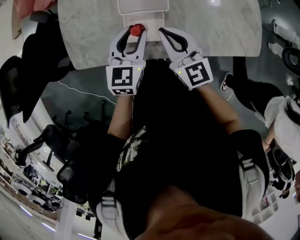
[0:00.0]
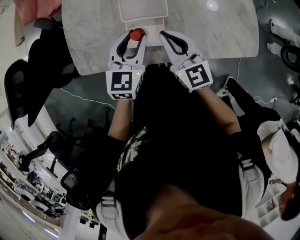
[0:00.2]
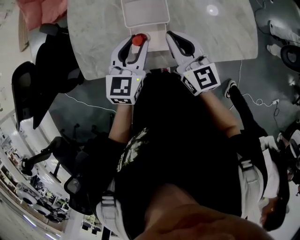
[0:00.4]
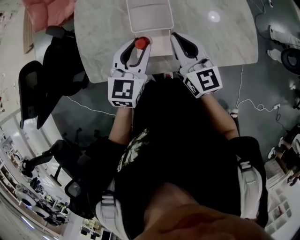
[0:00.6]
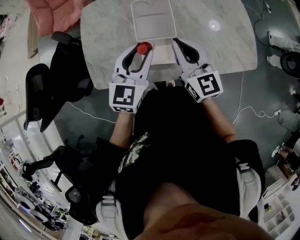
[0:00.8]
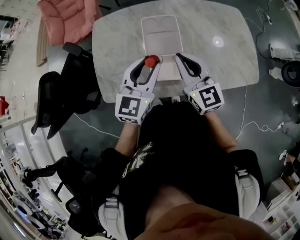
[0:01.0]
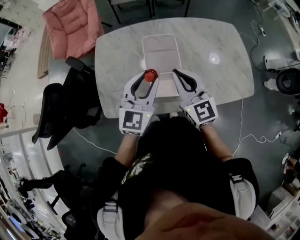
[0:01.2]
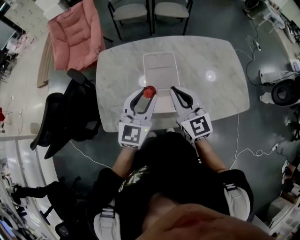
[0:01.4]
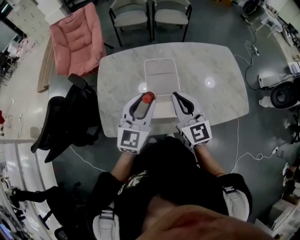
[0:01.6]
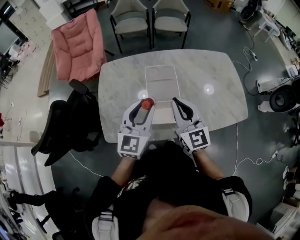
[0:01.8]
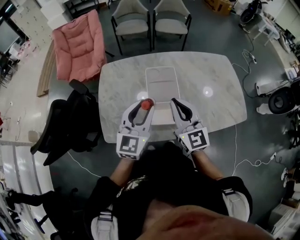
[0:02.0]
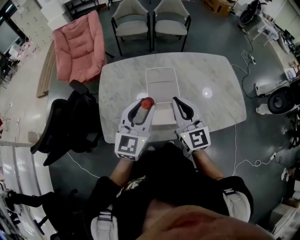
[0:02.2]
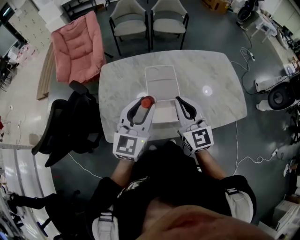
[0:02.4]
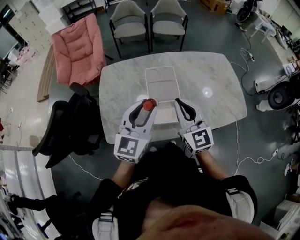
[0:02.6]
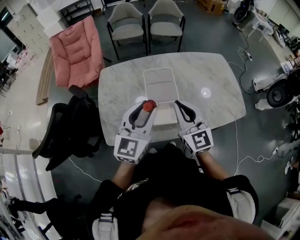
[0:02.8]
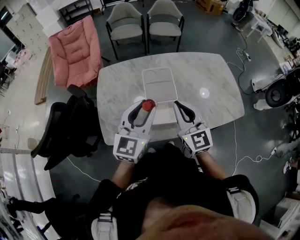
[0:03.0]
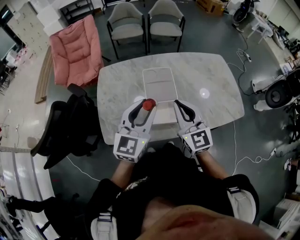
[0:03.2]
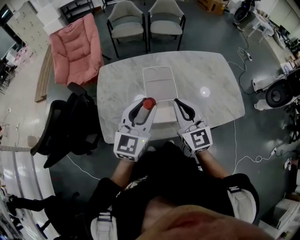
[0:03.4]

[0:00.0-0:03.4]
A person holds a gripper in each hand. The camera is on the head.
0:00.0 to 0:01.6: The right gripper travels upward by approximately 15 cm; the left gripper shifts roughly 20 cm upward and to the left, and changes its angle by roughly 20 degrees.
0:01.6 to 0:03.4: The grippers make only small movements.

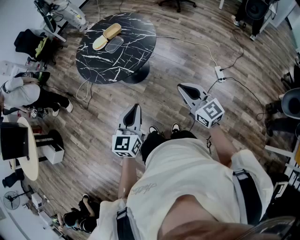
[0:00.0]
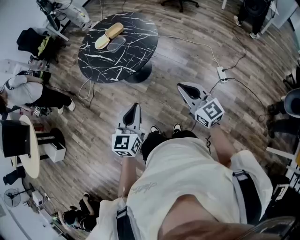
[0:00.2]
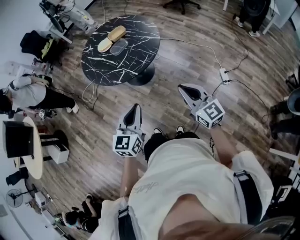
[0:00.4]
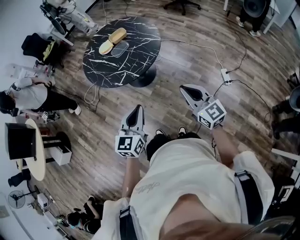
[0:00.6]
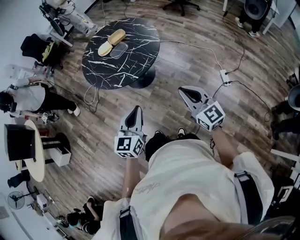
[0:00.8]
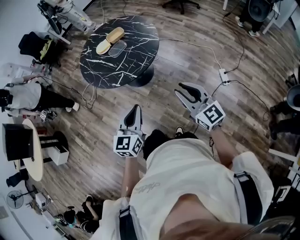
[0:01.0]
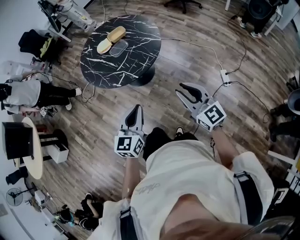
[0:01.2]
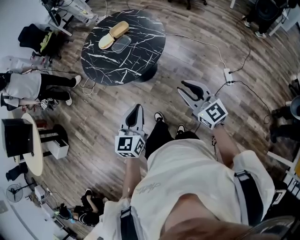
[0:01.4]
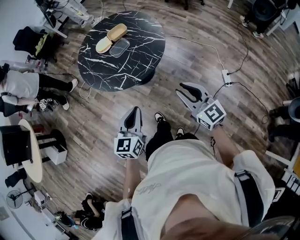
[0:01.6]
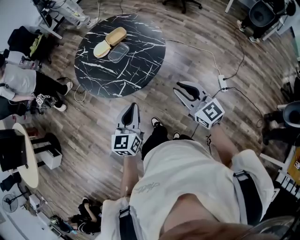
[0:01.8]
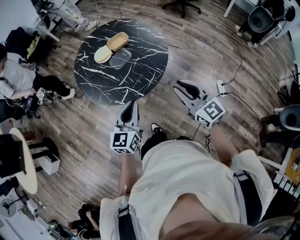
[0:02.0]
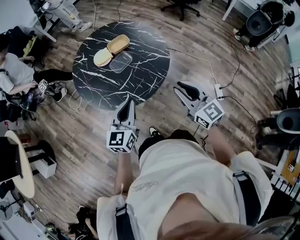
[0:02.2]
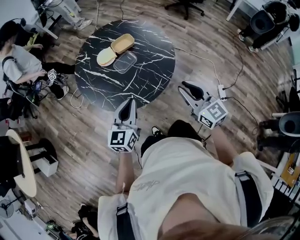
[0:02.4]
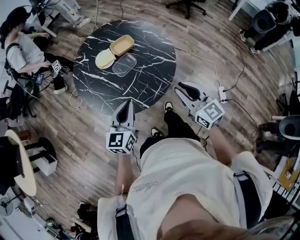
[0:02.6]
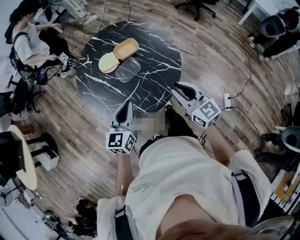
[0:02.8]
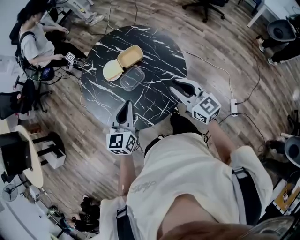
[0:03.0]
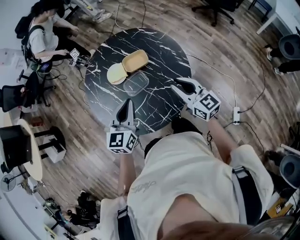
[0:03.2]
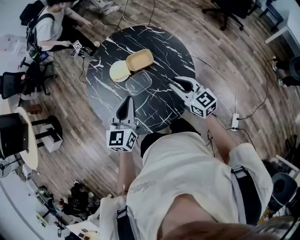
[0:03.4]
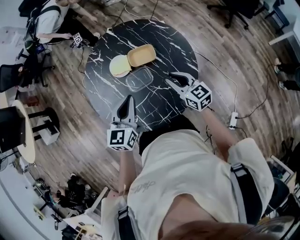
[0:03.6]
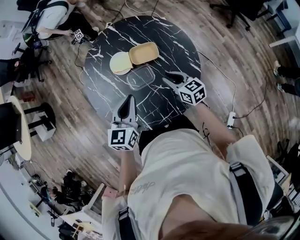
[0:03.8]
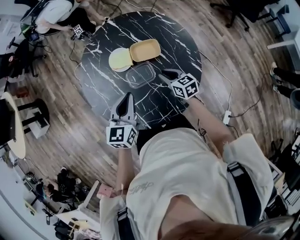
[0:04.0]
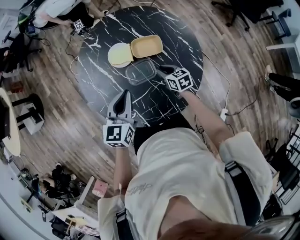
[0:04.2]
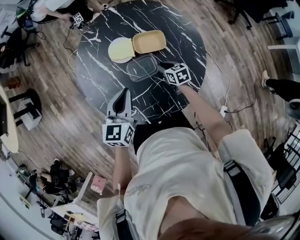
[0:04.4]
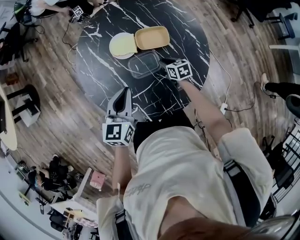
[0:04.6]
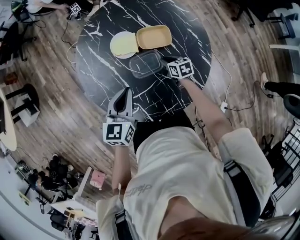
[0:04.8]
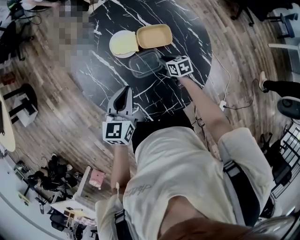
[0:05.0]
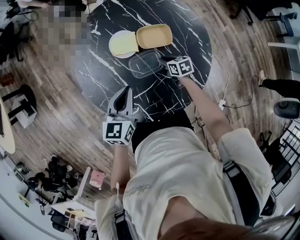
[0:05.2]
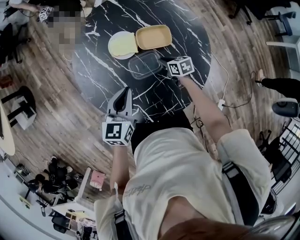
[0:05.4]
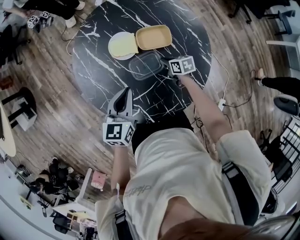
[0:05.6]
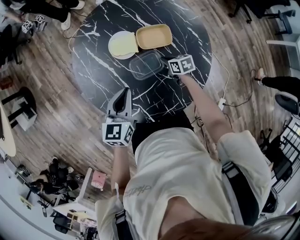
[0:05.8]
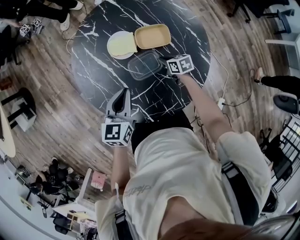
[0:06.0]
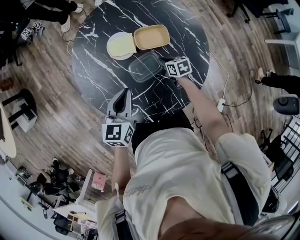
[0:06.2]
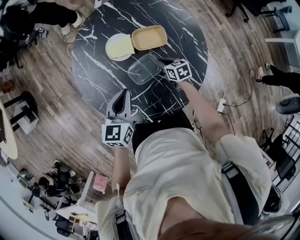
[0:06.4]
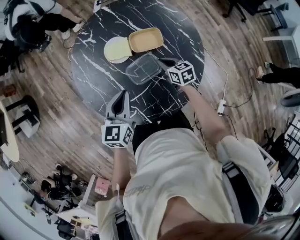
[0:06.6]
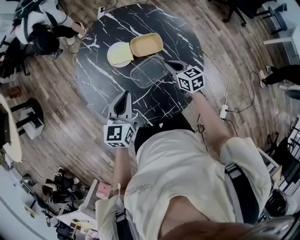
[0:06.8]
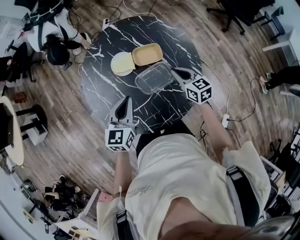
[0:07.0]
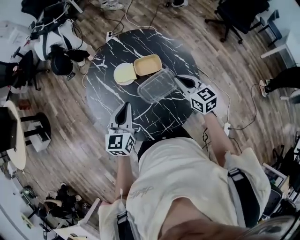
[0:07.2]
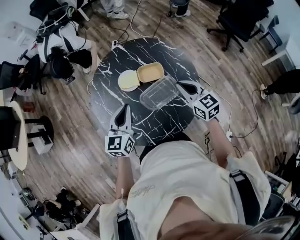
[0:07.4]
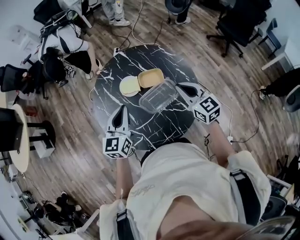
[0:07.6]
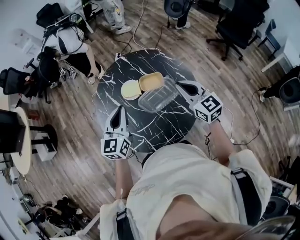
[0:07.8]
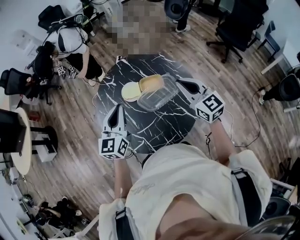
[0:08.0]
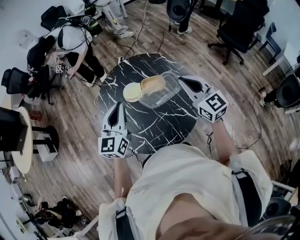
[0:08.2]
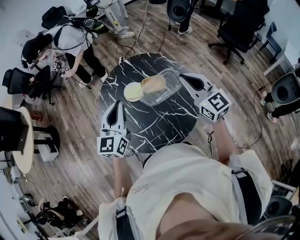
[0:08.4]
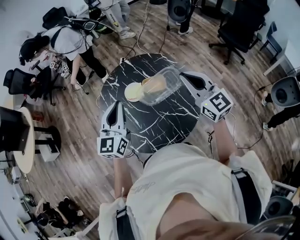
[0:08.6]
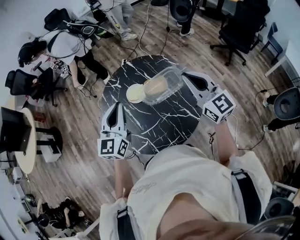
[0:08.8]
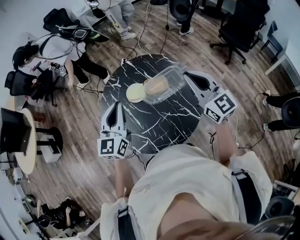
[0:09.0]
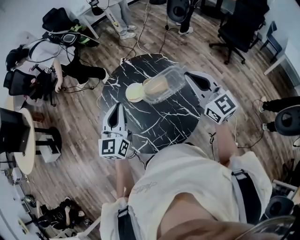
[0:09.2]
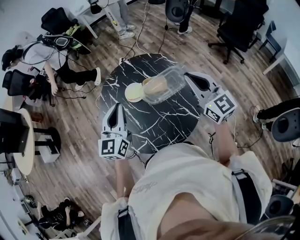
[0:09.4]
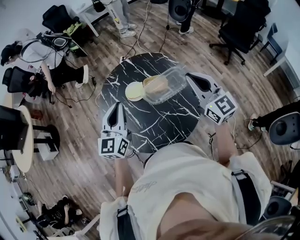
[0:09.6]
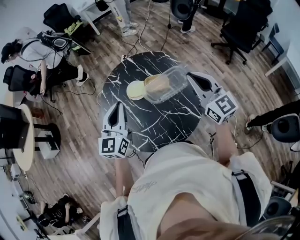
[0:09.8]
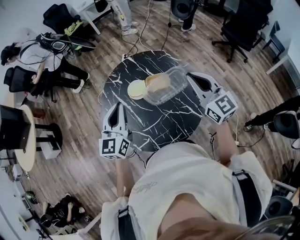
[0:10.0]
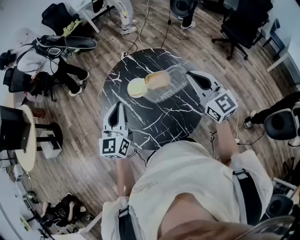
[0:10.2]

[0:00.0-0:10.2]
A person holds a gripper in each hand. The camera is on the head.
0:00.0 to 0:01.4: The two grippers go some 5 cm forward. The right gripper opens.
0:01.4 to 0:03.0: The two grippers travel together, forward, some 40 cm.
0:03.0 to 0:04.4: The left gripper shifts some 15 cm forward and downward. The right gripper goes some 35 cm downward and forward, and tilts its fingers some 40 degrees downward.
0:04.4 to 0:05.8: The left gripper moves approximately 5 cm.
0:05.8 to 0:07.2: The left gripper is displaced upward by some 10 cm, while the right gripper heads upward, covering about 25 cm, and changes its angle by roughly 40 degrees.
0:07.2 to 0:08.8: The two grippers go about 20 cm upward. The right gripper swivels roughly 30 degrees.
0:08.8 to 0:10.2: The grippers move only a little.

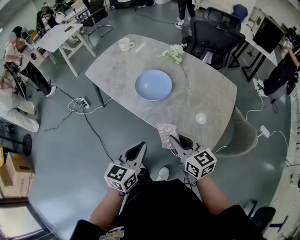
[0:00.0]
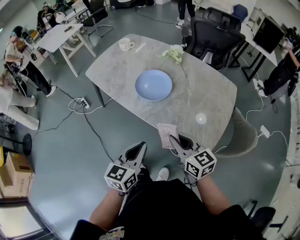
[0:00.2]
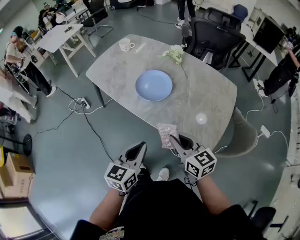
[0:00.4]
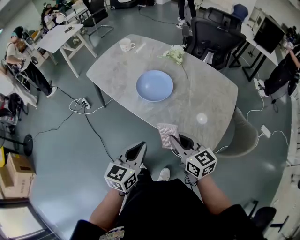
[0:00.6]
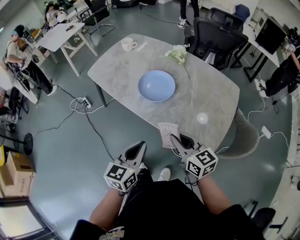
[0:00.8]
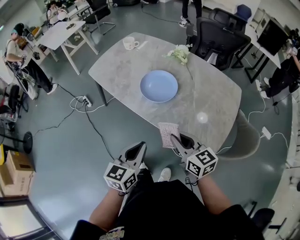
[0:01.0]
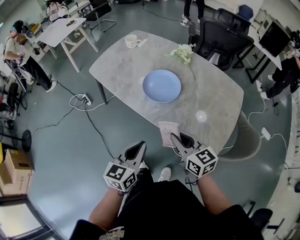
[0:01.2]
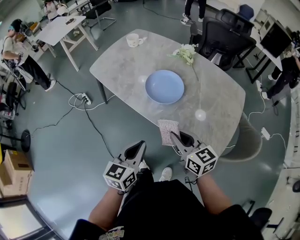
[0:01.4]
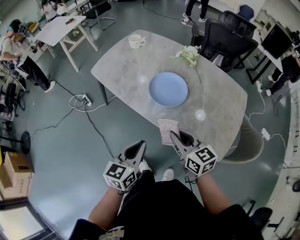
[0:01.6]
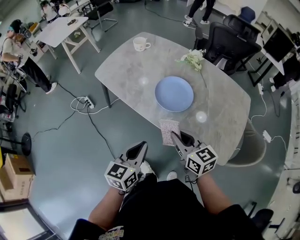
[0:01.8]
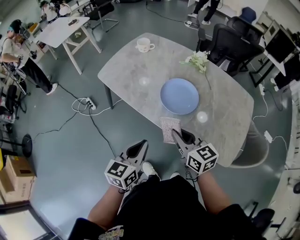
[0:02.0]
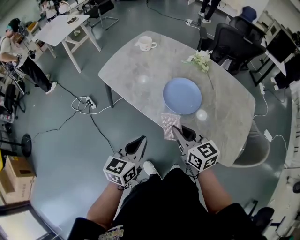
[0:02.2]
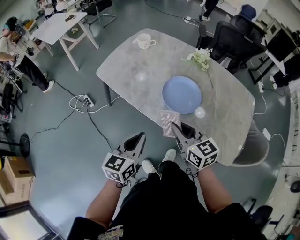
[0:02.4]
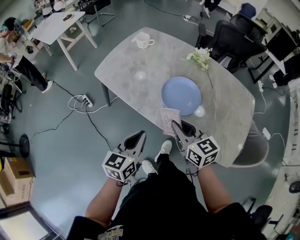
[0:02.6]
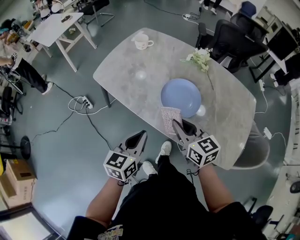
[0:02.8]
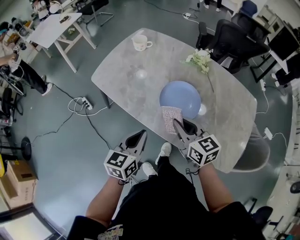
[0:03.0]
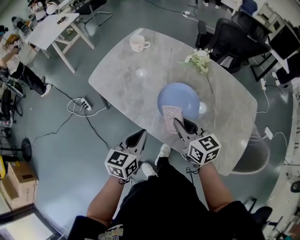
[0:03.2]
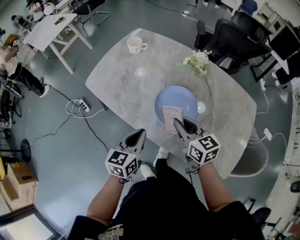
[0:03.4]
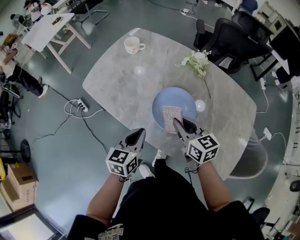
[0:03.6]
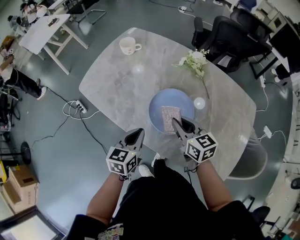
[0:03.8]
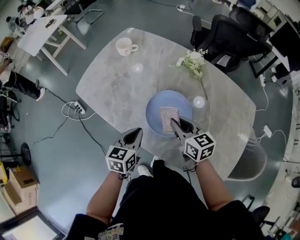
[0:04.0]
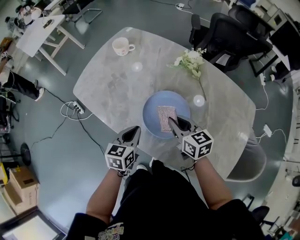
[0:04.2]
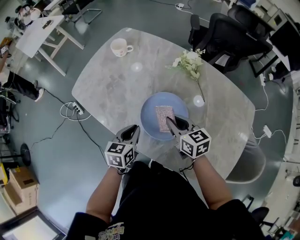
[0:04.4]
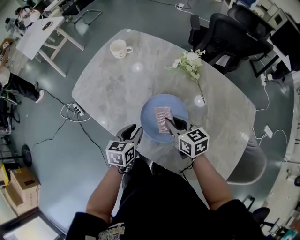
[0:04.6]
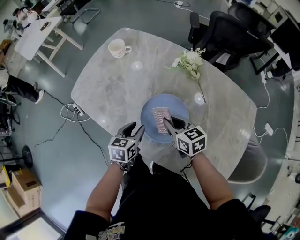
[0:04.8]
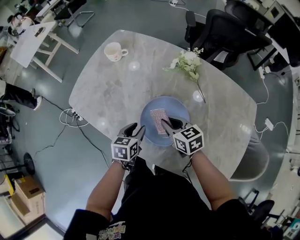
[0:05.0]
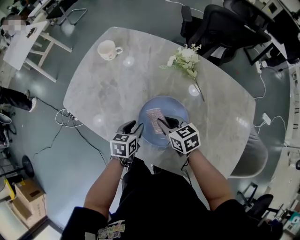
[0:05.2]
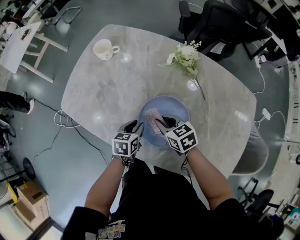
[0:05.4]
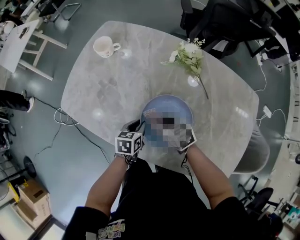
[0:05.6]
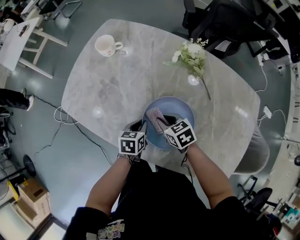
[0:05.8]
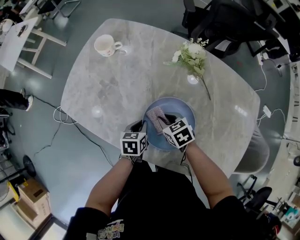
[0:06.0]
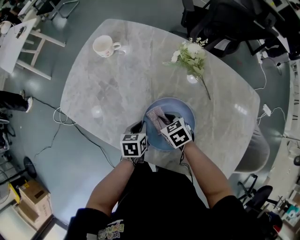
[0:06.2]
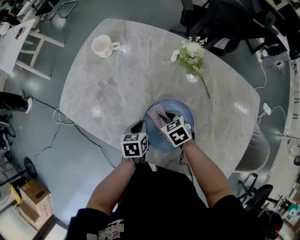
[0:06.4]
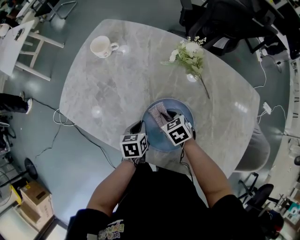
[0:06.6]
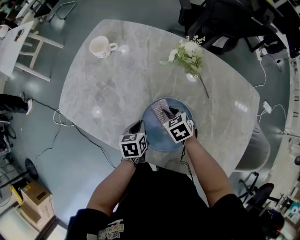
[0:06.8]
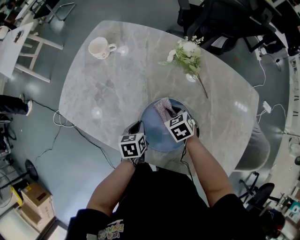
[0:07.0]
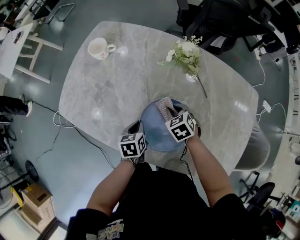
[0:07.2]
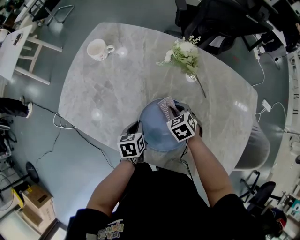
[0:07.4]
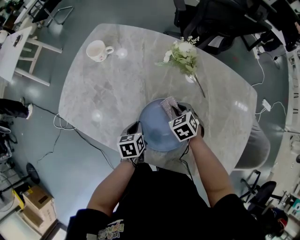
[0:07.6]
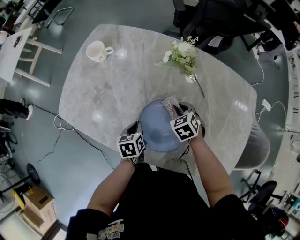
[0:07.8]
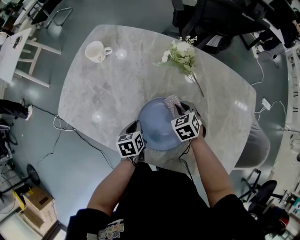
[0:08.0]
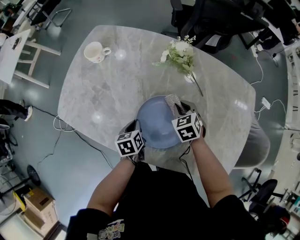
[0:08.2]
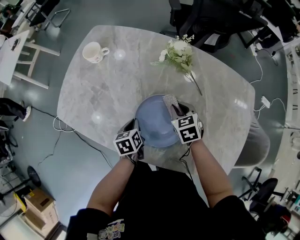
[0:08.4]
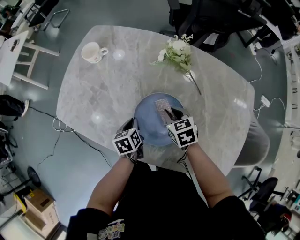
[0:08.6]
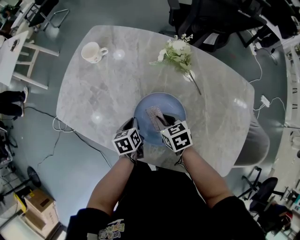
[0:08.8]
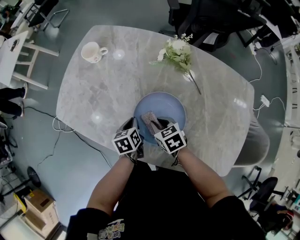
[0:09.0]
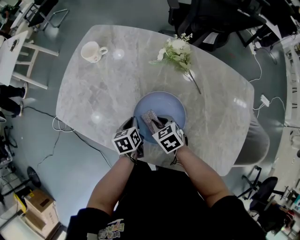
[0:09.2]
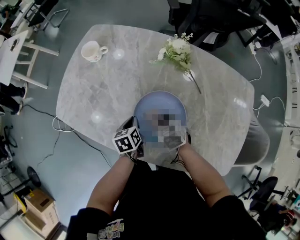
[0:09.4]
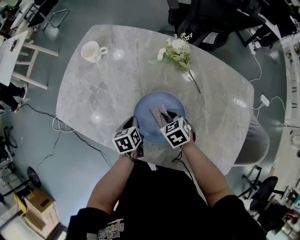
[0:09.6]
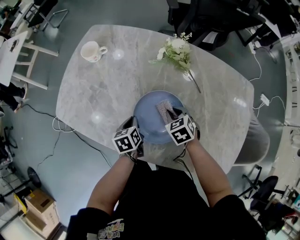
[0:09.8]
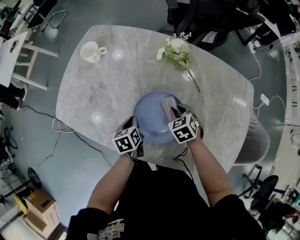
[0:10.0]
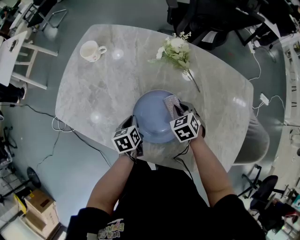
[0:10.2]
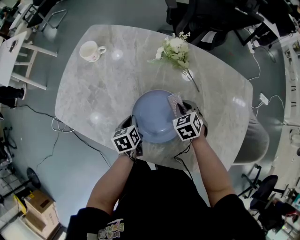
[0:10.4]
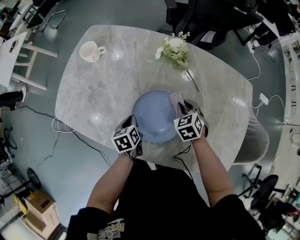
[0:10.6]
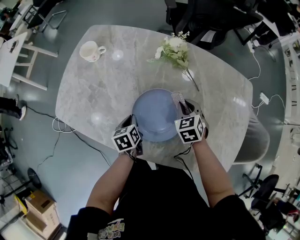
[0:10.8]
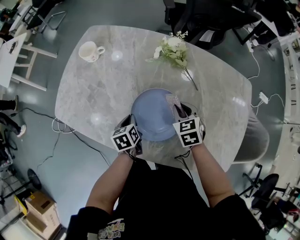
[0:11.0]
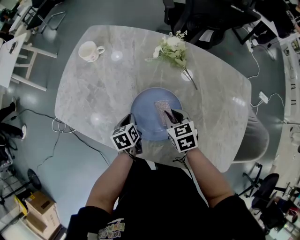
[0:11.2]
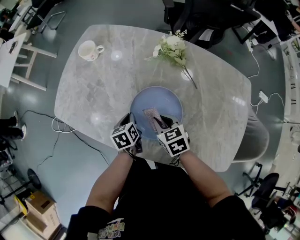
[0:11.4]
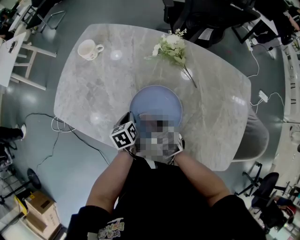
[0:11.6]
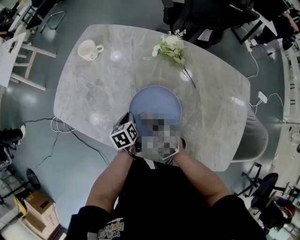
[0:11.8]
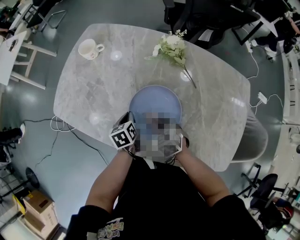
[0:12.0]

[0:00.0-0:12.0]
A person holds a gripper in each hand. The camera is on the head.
0:00.0 to 0:01.6: Both grippers move to the left and forward, about 15 cm.
0:01.6 to 0:03.0: Both grippers travel together forward, approximately 15 cm.
0:03.0 to 0:04.4: The right gripper moves forward, to the right and downward, approximately 20 cm. Meanwhile the left gripper goes some 20 cm forward, downward and to the right.
0:04.4 to 0:06.0: Both grippers travel together downward and forward, approximately 15 cm. The right gripper rotates roughly 30 degrees; the left gripper opens and closes again.
0:06.0 to 0:07.6: The right gripper goes roughly 10 cm to the right, and turns by approximately 20 degrees.
0:07.6 to 0:09.0: The right gripper shifts approximately 10 cm to the left and backward, and changes its angle by approximately 20 degrees.
0:09.0 to 0:10.4: The right gripper moves to the right, about 15 cm, and changes its angle by some 30 degrees.
0:10.4 to 0:12.0: The right gripper heads to the left and backward, covering roughly 15 cm.
